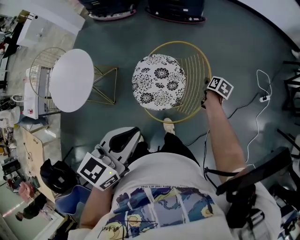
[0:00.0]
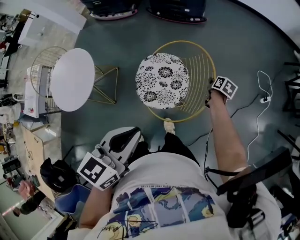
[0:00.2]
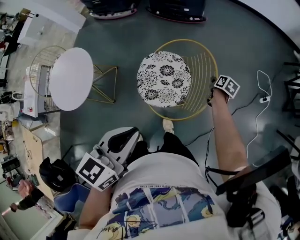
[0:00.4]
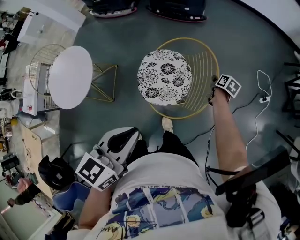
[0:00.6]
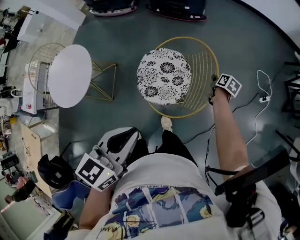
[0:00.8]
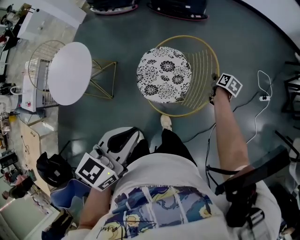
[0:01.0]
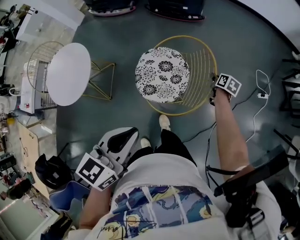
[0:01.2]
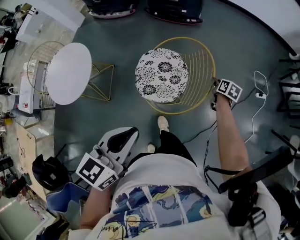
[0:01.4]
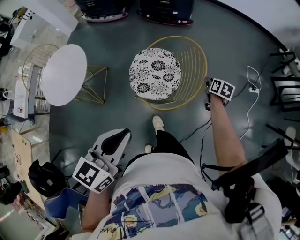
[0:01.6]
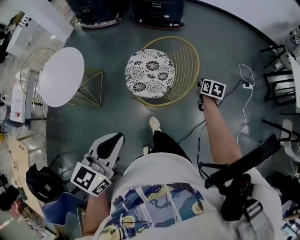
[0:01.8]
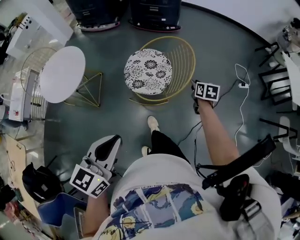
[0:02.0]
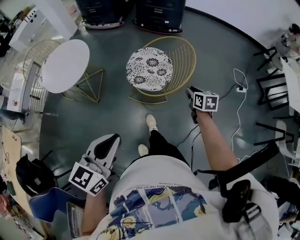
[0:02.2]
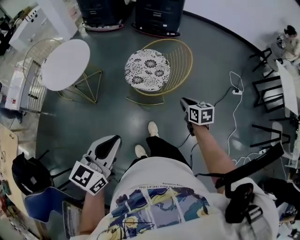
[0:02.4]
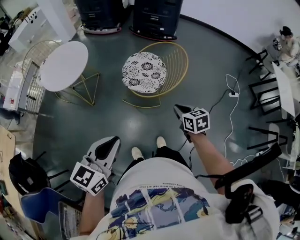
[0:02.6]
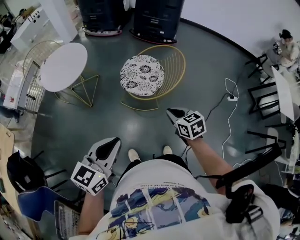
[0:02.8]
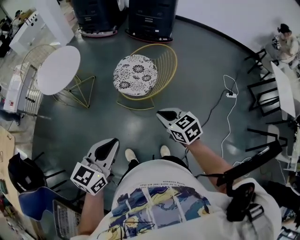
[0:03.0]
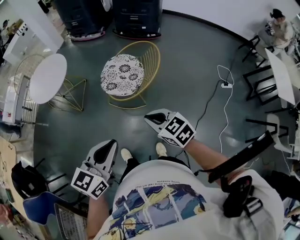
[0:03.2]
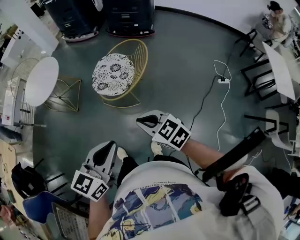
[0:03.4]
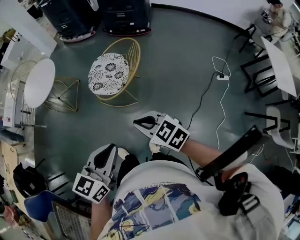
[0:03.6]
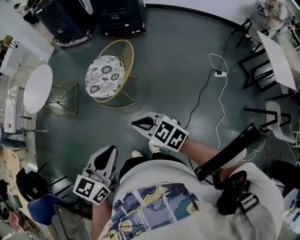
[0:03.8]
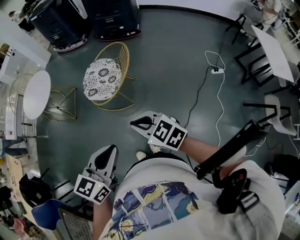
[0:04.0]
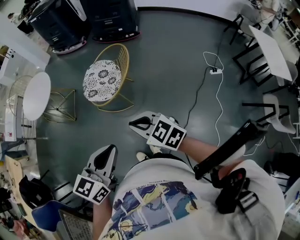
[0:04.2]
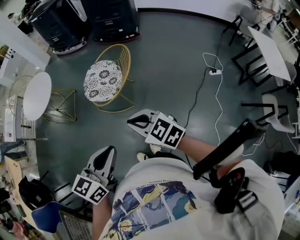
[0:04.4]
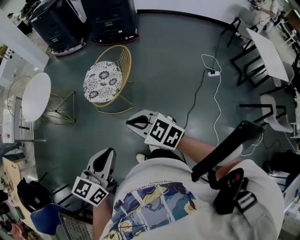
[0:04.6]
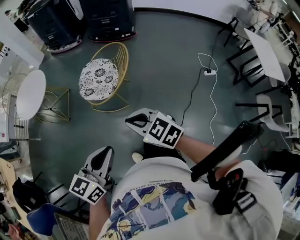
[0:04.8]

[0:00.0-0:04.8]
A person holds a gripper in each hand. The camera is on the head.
0.0 to 1.6 s: The left gripper goes roughly 10 cm backward, while the right gripper goes some 10 cm upward, backward and to the right.
1.6 to 3.2 s: The left gripper moves approximately 25 cm. The right gripper shifts by approximately 40 cm, swivels approximately 70 degrees, and closes.
3.2 to 4.8 s: The two grippers go about 10 cm to the right and backward.

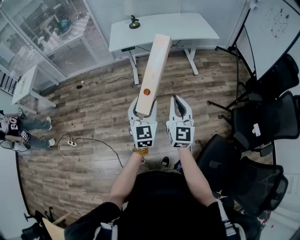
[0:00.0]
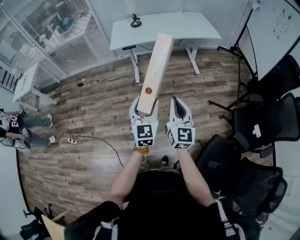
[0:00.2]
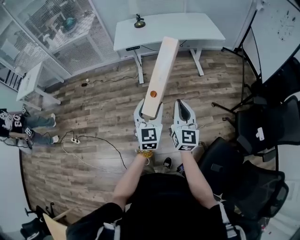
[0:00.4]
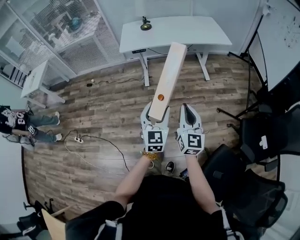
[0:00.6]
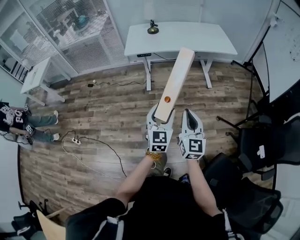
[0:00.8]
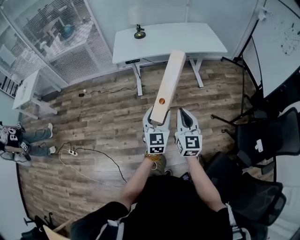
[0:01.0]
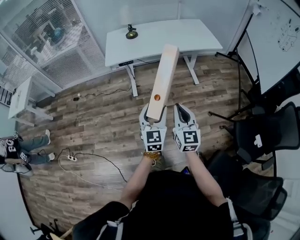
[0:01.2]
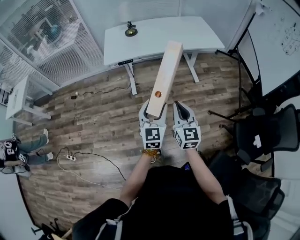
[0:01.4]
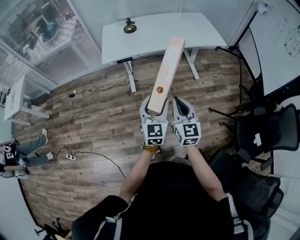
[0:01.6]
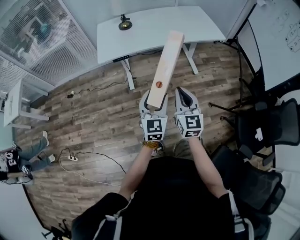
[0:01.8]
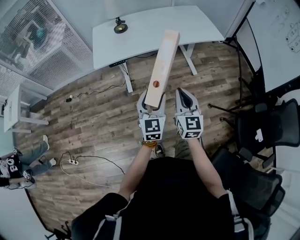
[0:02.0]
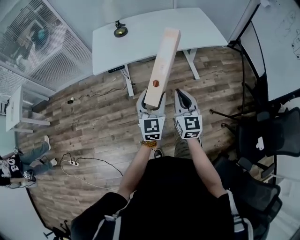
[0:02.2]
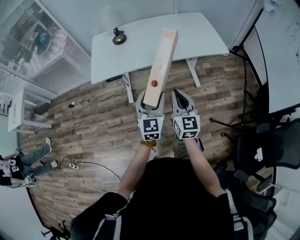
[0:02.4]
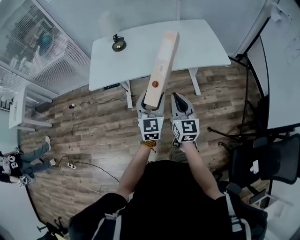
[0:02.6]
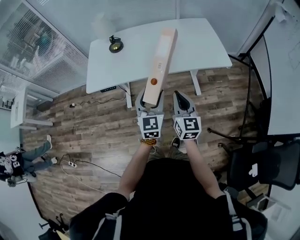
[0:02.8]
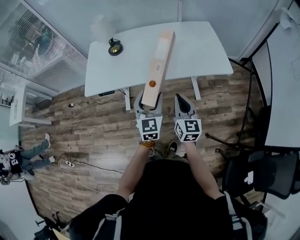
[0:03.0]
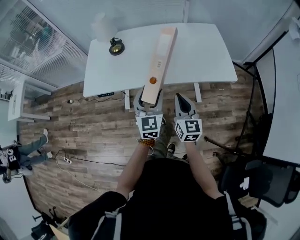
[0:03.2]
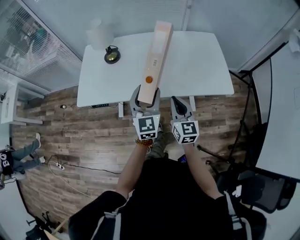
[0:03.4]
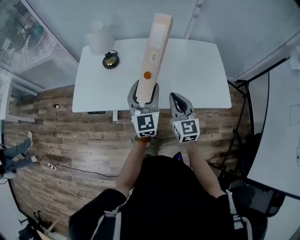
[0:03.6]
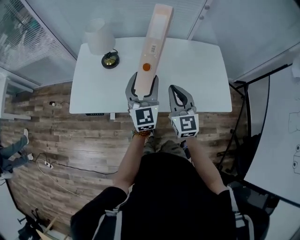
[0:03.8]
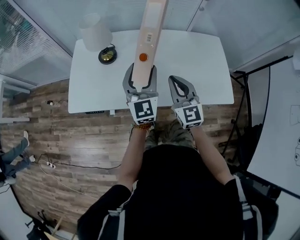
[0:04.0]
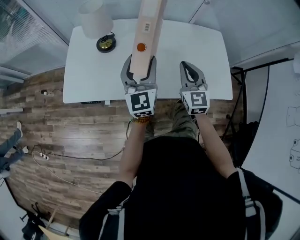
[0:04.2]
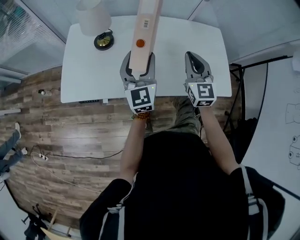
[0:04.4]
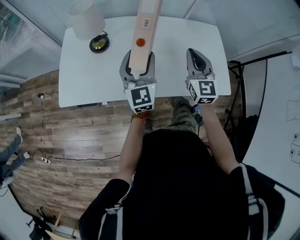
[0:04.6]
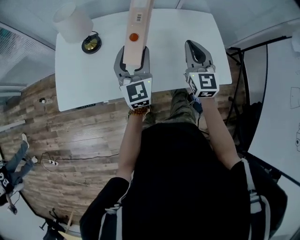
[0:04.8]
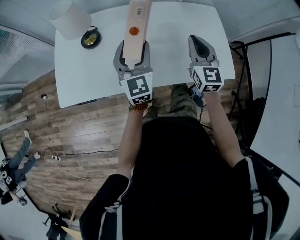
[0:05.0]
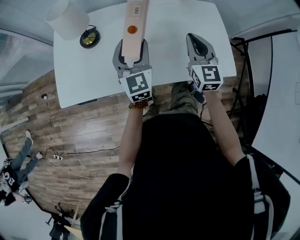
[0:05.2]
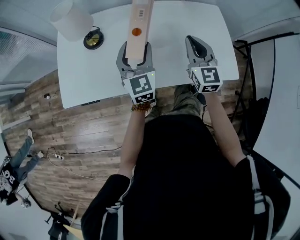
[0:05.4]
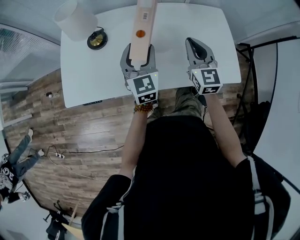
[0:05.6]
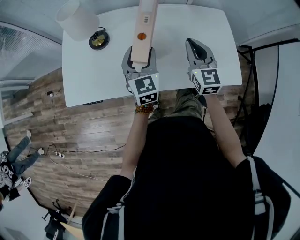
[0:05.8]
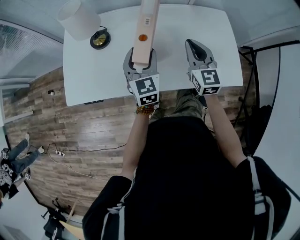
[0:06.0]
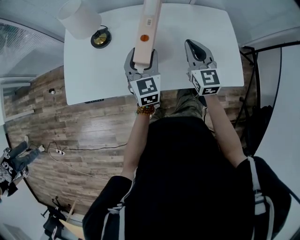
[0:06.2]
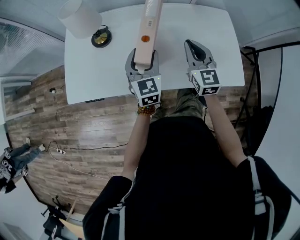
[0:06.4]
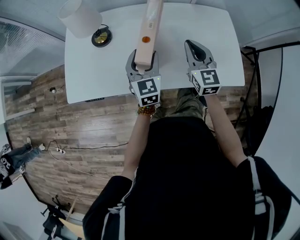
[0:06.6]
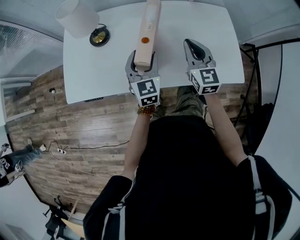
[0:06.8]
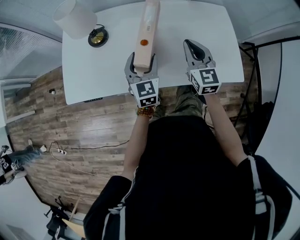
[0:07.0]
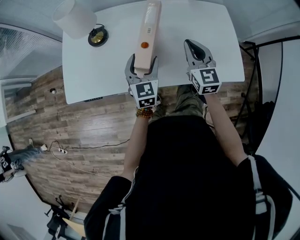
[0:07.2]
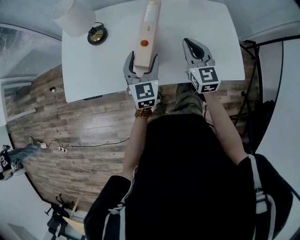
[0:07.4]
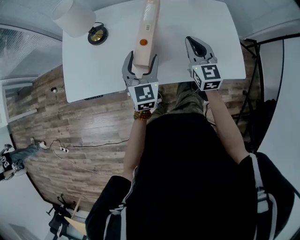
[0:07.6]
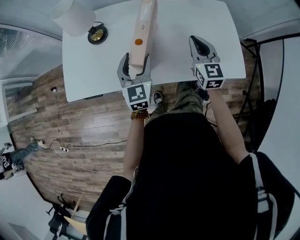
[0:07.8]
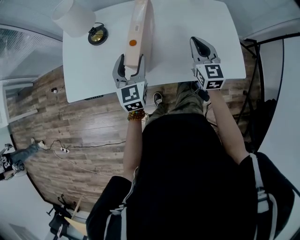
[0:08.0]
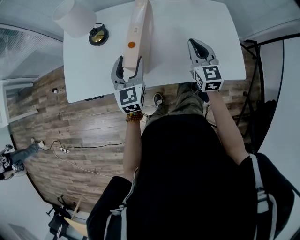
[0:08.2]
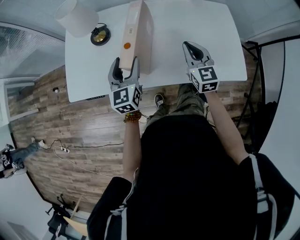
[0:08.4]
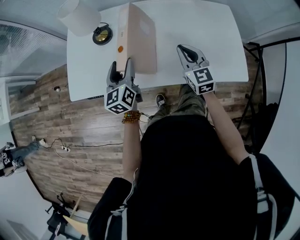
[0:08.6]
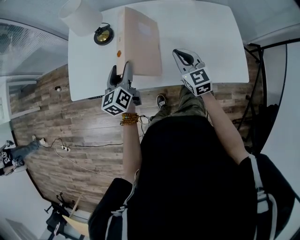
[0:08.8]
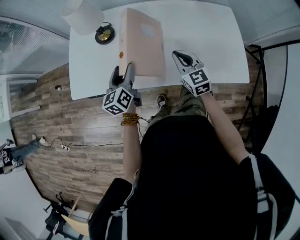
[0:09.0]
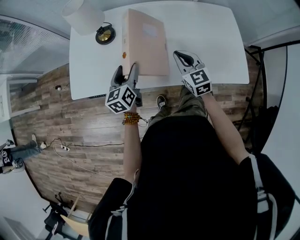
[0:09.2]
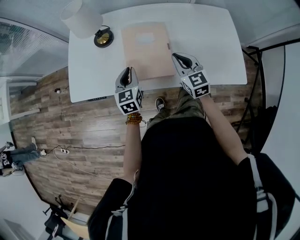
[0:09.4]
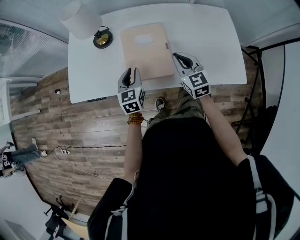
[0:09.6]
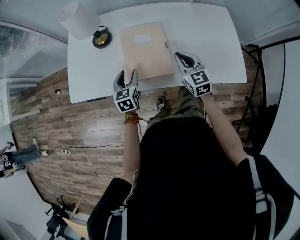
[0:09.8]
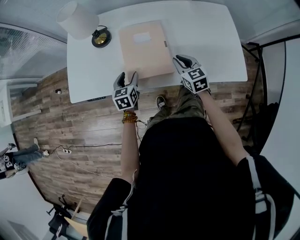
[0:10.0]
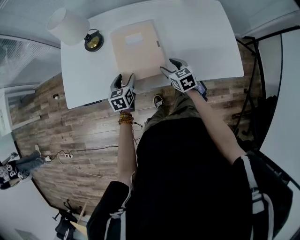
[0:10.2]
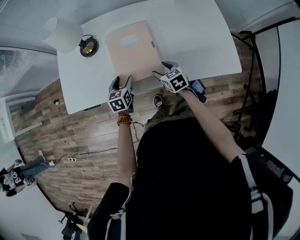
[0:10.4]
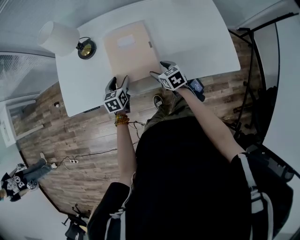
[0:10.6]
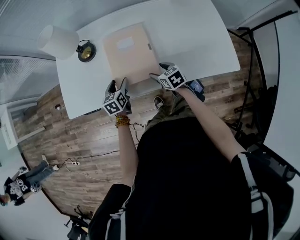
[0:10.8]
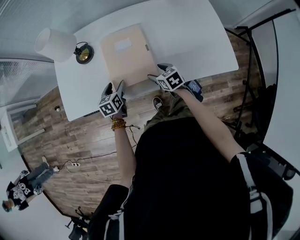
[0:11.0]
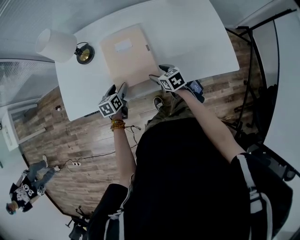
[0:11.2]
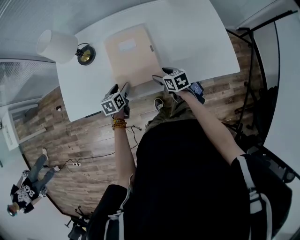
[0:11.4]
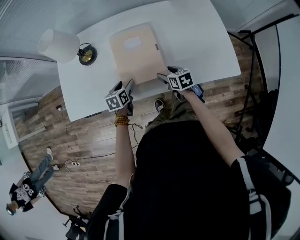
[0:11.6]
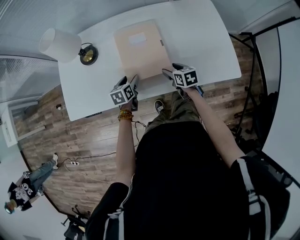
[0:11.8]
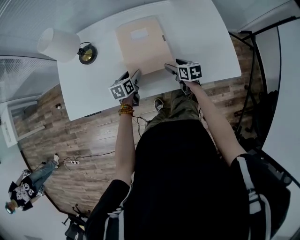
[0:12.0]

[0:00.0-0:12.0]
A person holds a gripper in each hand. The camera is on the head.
0.0 to 1.6 s: Both grippers move forward, some 25 cm.
1.6 to 3.0 s: Both grippers travel together forward and to the right, about 40 cm.
3.0 to 4.4 s: Both grippers move forward, roughly 30 cm. The left gripper swivels some 20 degrees. Meanwhile the right gripper turns by about 30 degrees.
4.4 to 6.0 s: The left gripper heads downward, covering about 5 cm, while the right gripper ends up approximately 5 cm from where it was.
6.0 to 7.6 s: The left gripper moves roughly 5 cm.
7.6 to 9.0 s: The grippers both shift to the left and downward by about 10 cm. The left gripper turns by roughly 40 degrees.
9.0 to 10.4 s: Both grippers move downward, some 15 cm. The right gripper swivels approximately 30 degrees, and opens its fingers. The left gripper changes its angle by approximately 30 degrees, and closes and opens again.
10.4 to 12.0 s: Both grippers travel together to the right, about 10 cm. The right gripper changes its angle by approximately 20 degrees.

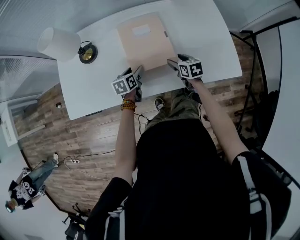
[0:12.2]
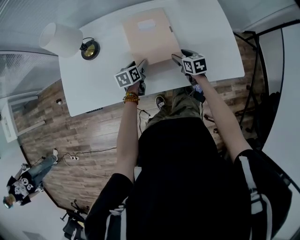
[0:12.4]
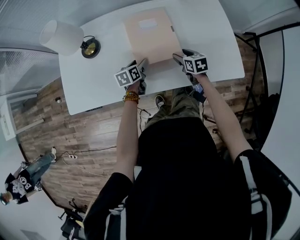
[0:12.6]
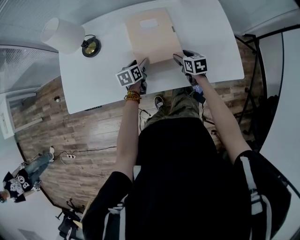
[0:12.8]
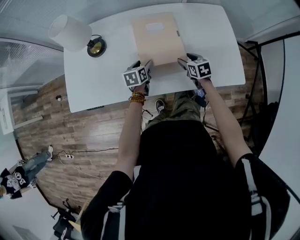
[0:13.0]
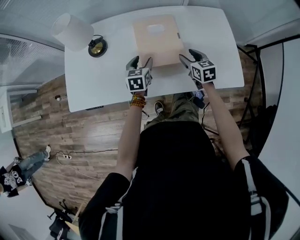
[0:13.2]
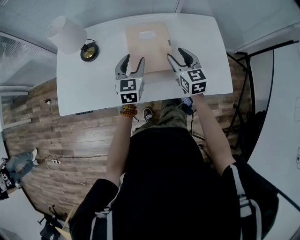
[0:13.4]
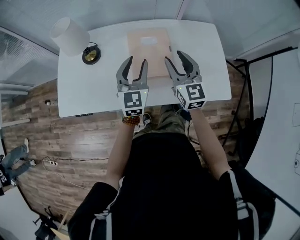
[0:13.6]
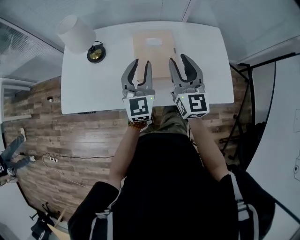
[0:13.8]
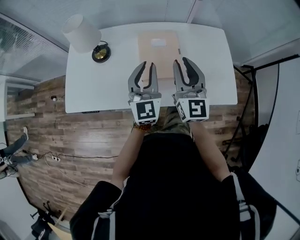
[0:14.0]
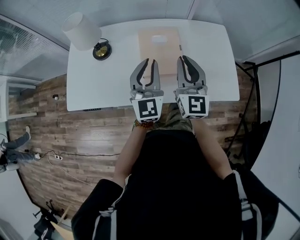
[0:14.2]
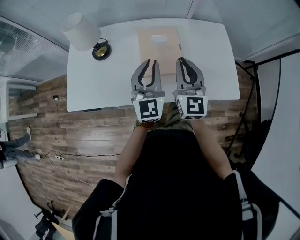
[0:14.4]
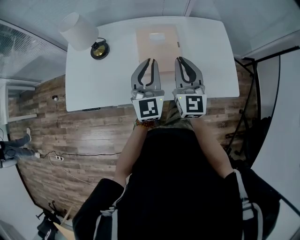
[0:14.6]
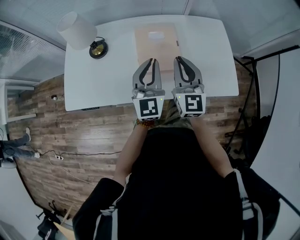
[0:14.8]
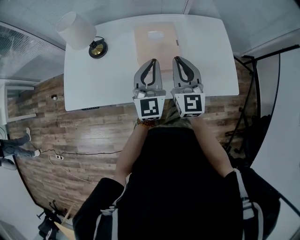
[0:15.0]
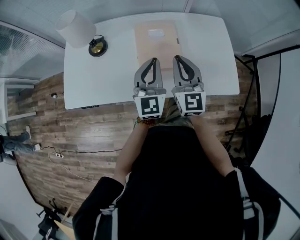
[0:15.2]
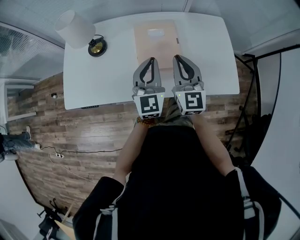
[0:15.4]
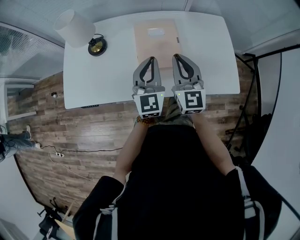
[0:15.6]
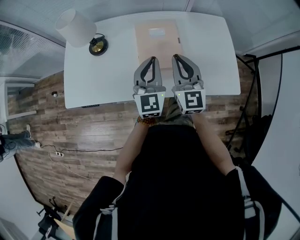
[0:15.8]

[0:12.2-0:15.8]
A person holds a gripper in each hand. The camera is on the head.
12.2 to 14.0 s: The two grippers go roughly 30 cm upward. The left gripper angles its fingers upward, by roughly 40 degrees, and closes up. Meanwhile the right gripper tips its fingers upward by approximately 50 degrees, and closes.
14.0 to 15.8 s: The right gripper goes approximately 5 cm downward.

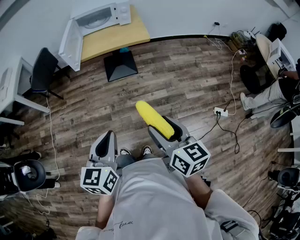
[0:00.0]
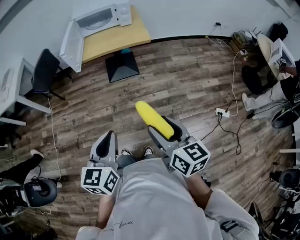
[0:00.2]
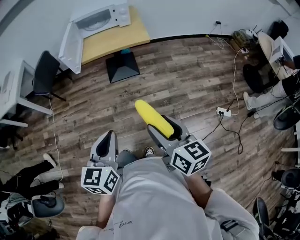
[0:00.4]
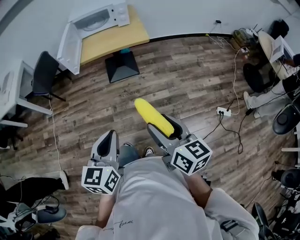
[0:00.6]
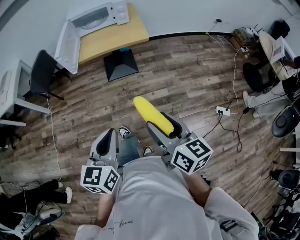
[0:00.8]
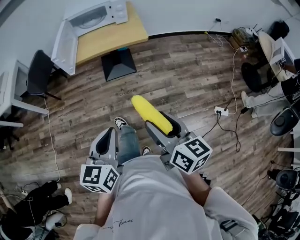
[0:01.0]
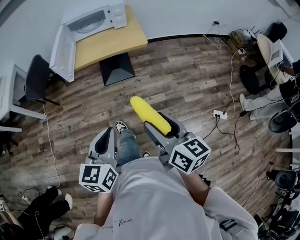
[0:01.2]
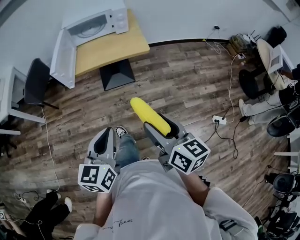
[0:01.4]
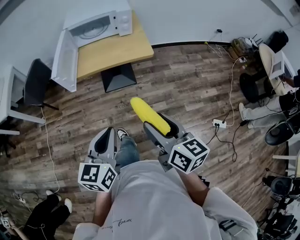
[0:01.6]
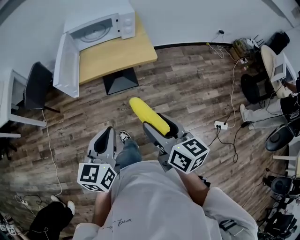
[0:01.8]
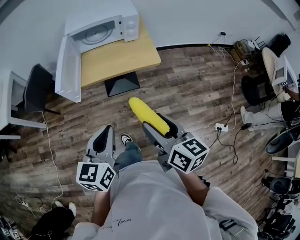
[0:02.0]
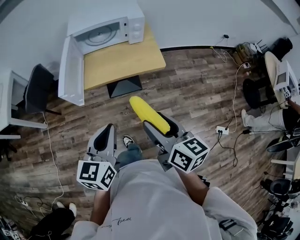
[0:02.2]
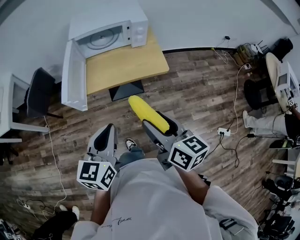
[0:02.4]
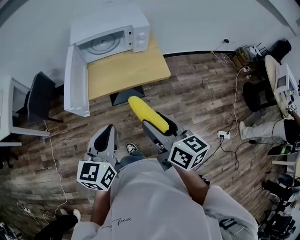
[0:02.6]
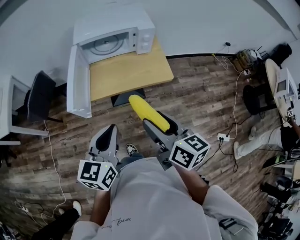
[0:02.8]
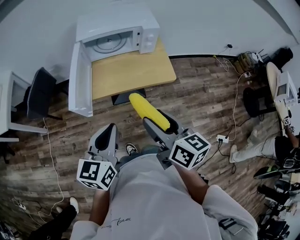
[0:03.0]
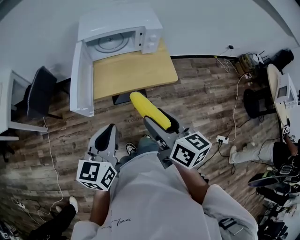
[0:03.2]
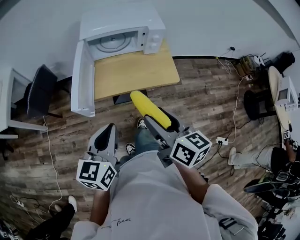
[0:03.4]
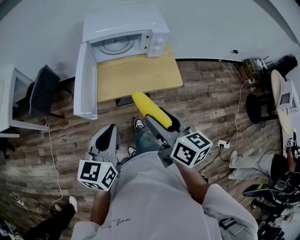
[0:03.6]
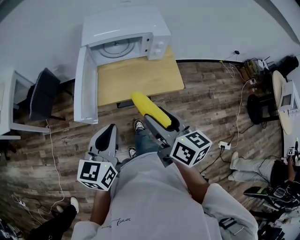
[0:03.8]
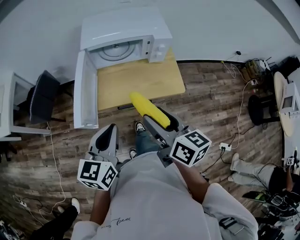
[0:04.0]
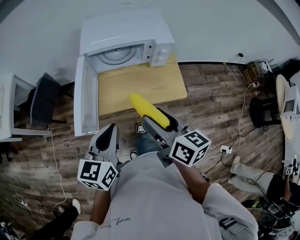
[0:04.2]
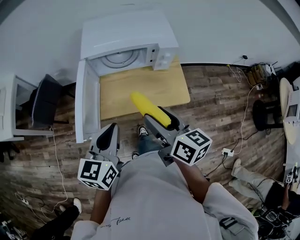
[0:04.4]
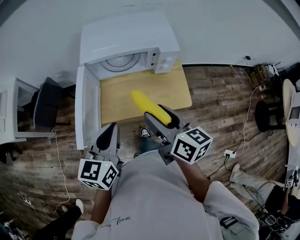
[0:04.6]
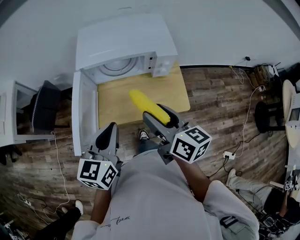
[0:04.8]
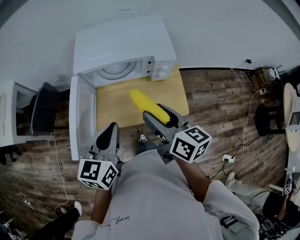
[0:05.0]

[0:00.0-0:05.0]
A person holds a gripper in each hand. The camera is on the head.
0.0 to 1.6 s: Both grippers move forward, about 20 cm.
1.6 to 3.4 s: The two grippers go approximately 25 cm forward and to the left.
3.4 to 5.0 s: The two grippers go roughly 25 cm forward.
